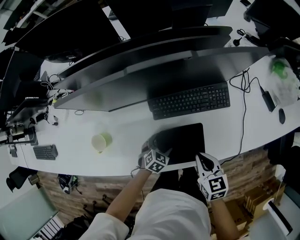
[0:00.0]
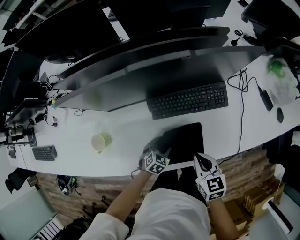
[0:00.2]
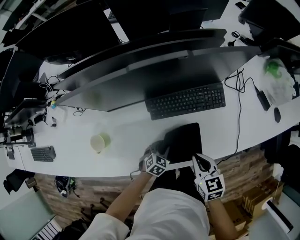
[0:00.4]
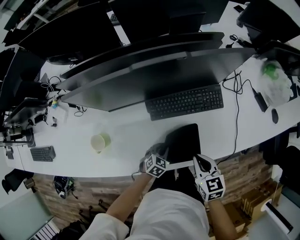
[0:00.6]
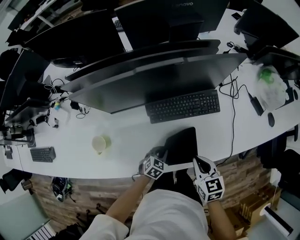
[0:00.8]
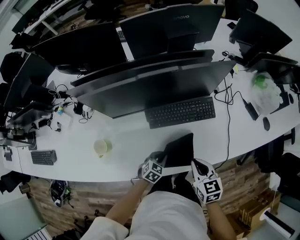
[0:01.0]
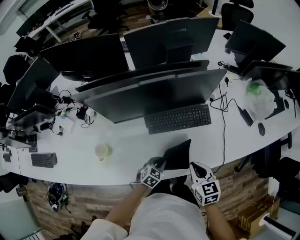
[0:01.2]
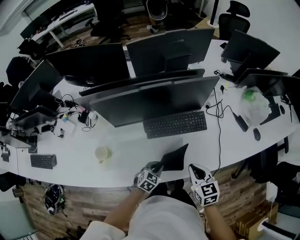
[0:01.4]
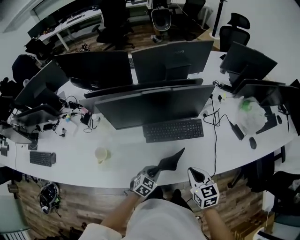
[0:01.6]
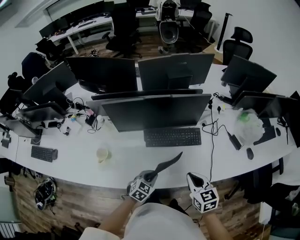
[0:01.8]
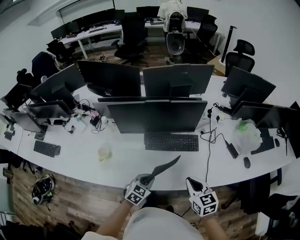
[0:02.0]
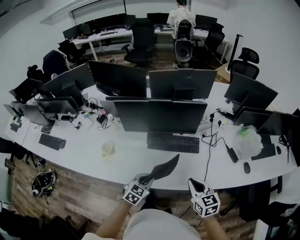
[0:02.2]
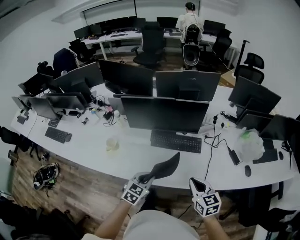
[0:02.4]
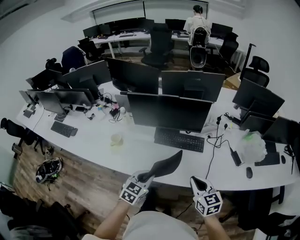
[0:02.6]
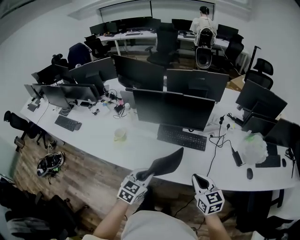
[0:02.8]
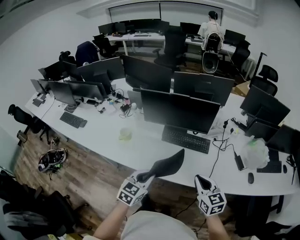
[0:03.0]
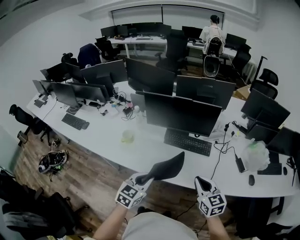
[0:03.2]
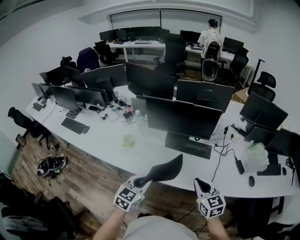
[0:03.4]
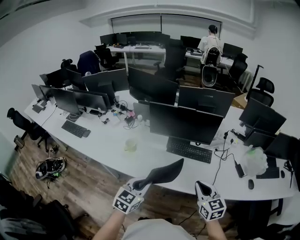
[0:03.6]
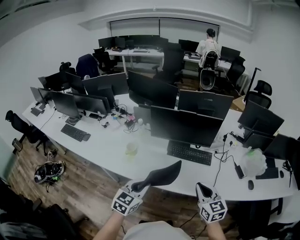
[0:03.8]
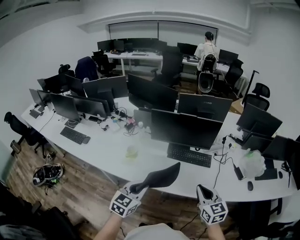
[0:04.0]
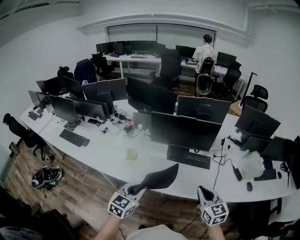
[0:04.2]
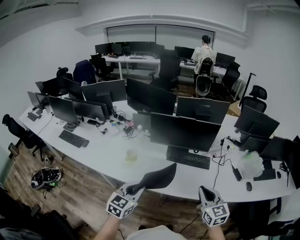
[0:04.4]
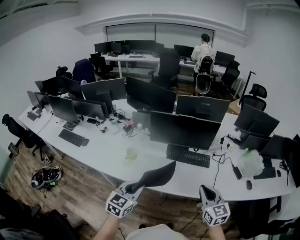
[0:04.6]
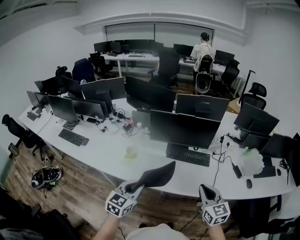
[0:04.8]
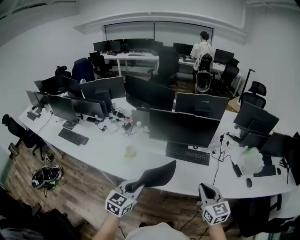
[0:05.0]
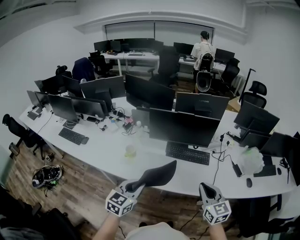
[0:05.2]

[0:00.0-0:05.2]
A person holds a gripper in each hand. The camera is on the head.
0.0 to 1.8 s: Both grippers travel together upward, roughly 20 cm. The left gripper closes.
1.8 to 3.4 s: The right gripper goes roughly 15 cm backward and upward, and changes its angle by approximately 20 degrees. The left gripper moves upward and backward, approximately 30 cm, and changes its angle by roughly 30 degrees.
3.4 to 5.2 s: The right gripper shifts approximately 5 cm upward. The left gripper shifts some 10 cm to the left.

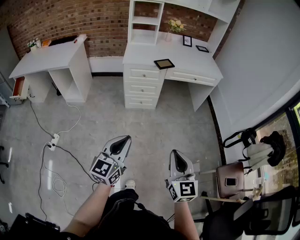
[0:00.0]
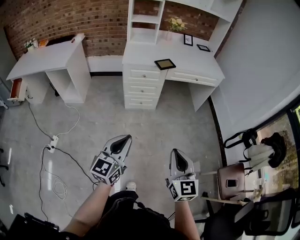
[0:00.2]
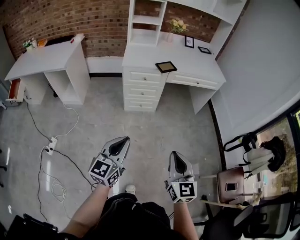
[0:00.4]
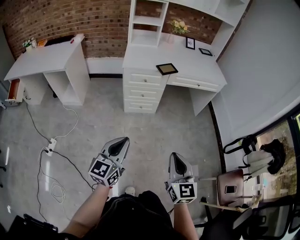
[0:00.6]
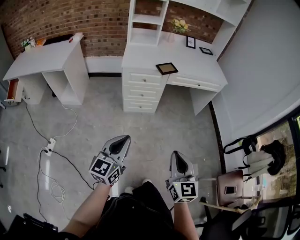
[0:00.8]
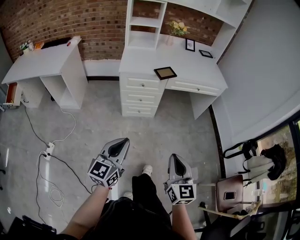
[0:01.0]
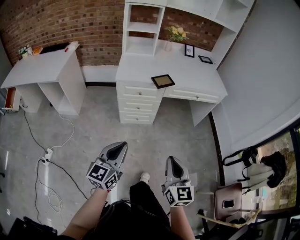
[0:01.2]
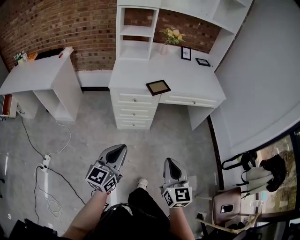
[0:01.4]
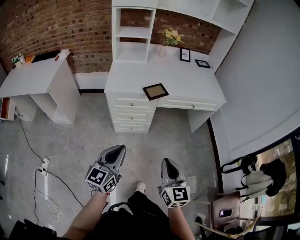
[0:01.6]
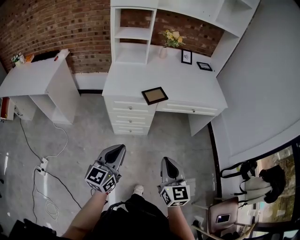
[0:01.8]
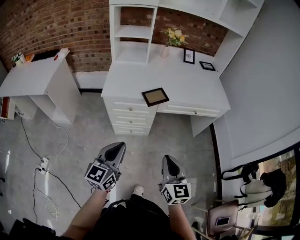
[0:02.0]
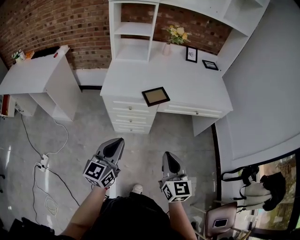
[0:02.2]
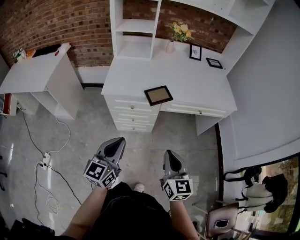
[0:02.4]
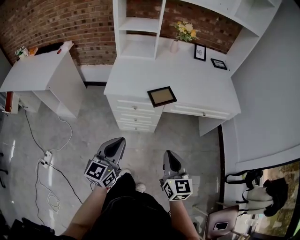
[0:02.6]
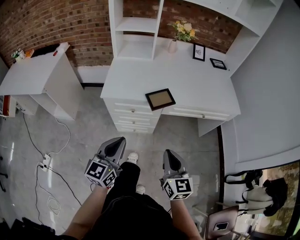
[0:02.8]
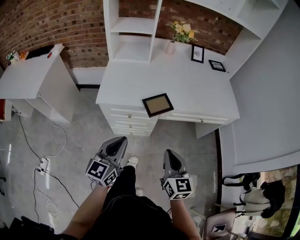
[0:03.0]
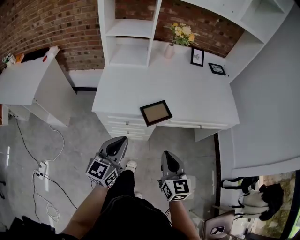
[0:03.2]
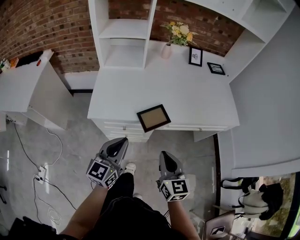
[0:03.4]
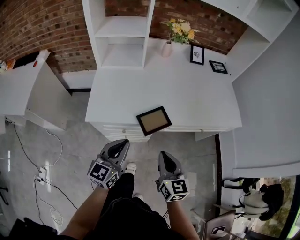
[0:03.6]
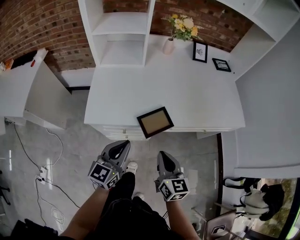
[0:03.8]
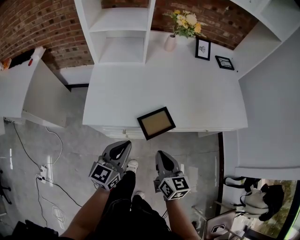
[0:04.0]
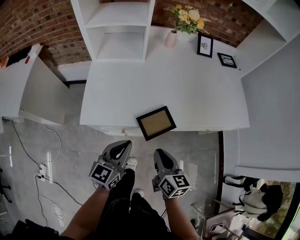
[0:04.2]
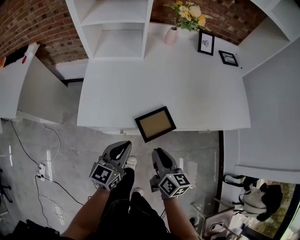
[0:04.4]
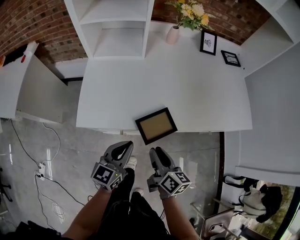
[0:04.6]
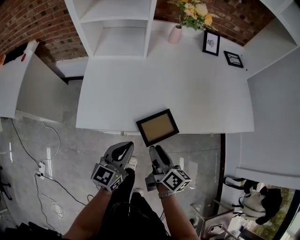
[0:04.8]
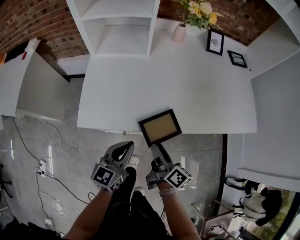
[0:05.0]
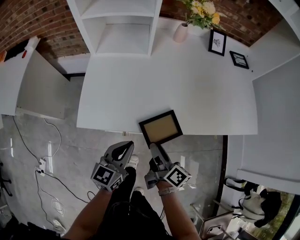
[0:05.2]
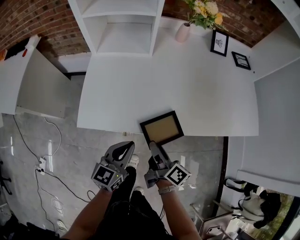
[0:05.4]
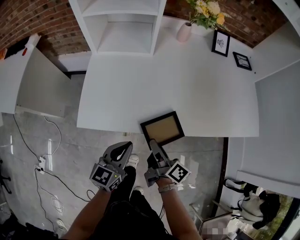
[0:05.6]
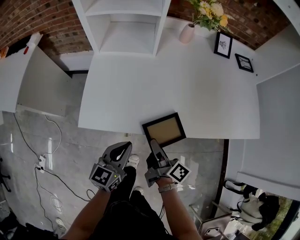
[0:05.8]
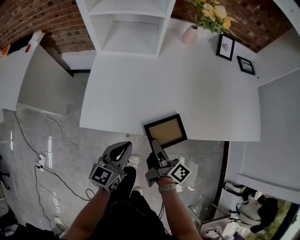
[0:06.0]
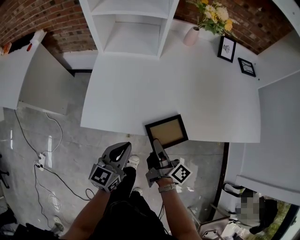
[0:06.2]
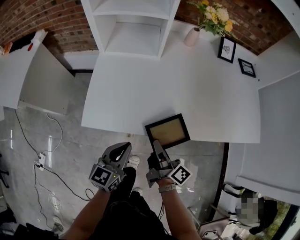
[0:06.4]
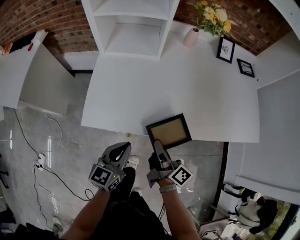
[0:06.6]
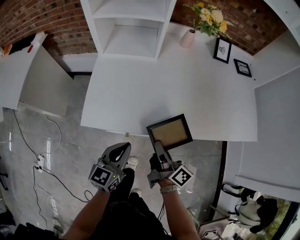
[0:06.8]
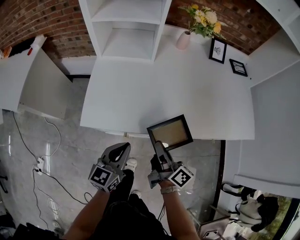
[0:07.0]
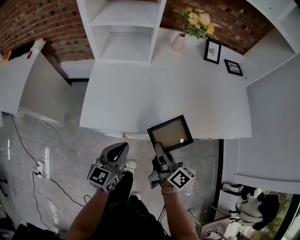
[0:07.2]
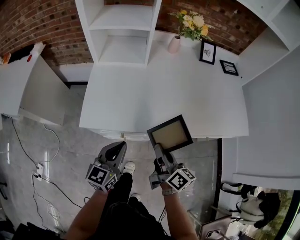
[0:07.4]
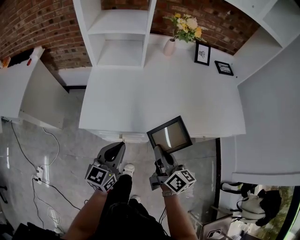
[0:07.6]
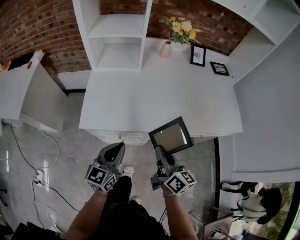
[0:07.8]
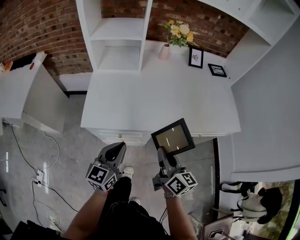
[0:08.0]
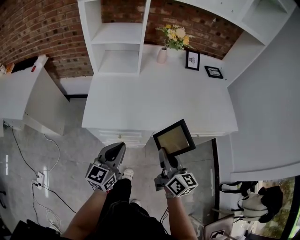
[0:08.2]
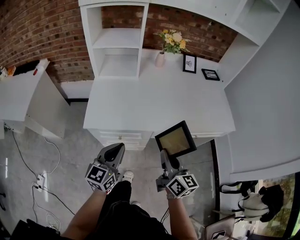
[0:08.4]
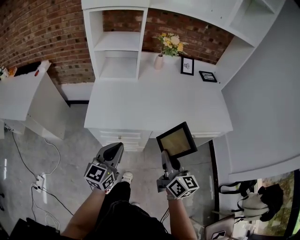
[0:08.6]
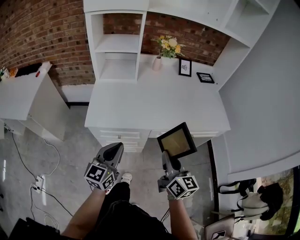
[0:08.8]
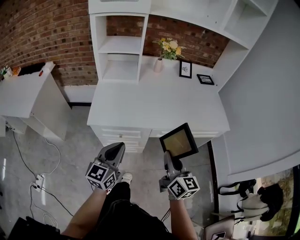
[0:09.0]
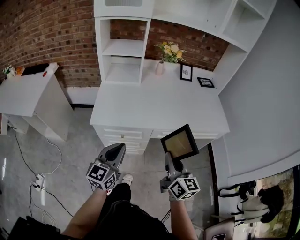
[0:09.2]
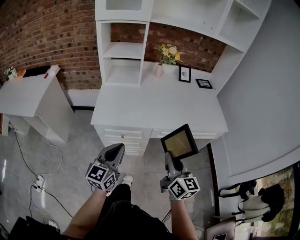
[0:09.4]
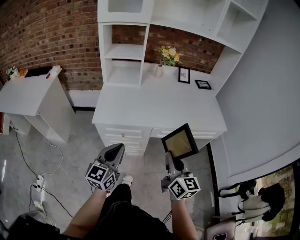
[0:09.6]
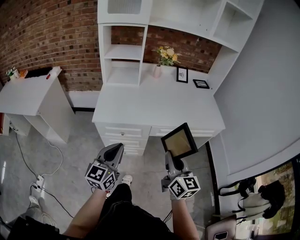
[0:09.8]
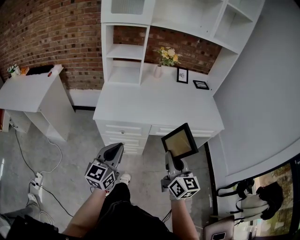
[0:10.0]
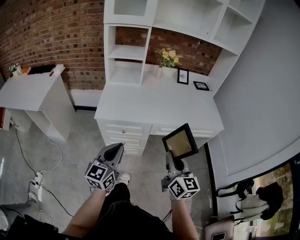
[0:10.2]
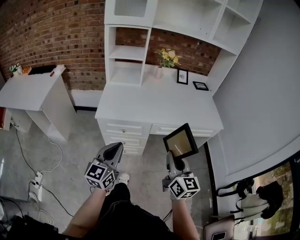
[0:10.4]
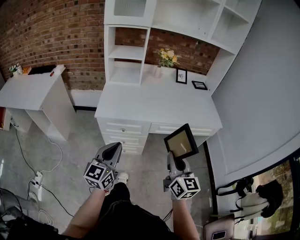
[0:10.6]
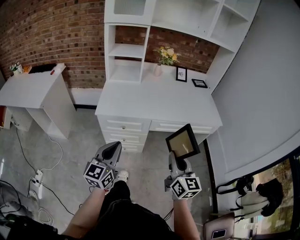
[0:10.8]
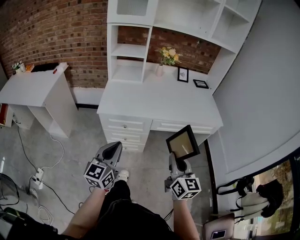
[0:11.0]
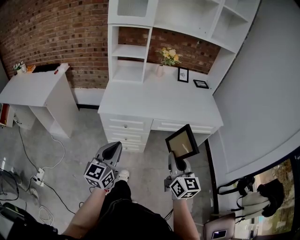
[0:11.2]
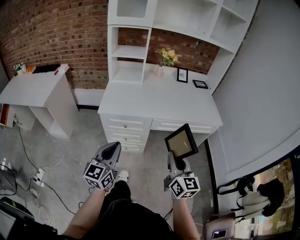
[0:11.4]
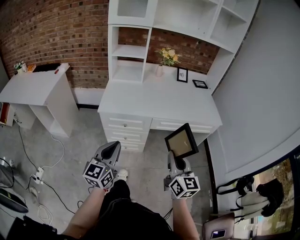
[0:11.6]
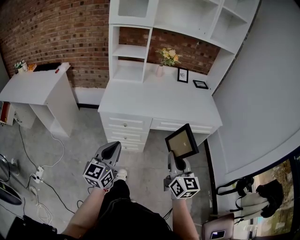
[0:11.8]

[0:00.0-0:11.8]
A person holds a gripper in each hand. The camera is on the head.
0.0 to 1.4 s: Both grippers move forward, approximately 25 cm.
1.4 to 3.0 s: Both grippers move forward, about 25 cm.
3.0 to 4.4 s: Both grippers travel together forward and downward, some 20 cm. The right gripper turns by approximately 30 degrees.
4.4 to 6.0 s: The right gripper shifts roughly 5 cm forward, swivels about 40 degrees, and opens and closes again.
6.0 to 7.4 s: The right gripper heads upward, covering approximately 5 cm, and swivels about 20 degrees.
7.4 to 8.8 s: The left gripper is displaced upward and backward by some 10 cm; the right gripper goes some 15 cm backward, upward and to the right, and changes its angle by some 30 degrees.
8.8 to 10.4 s: Both grippers move backward, approximately 10 cm.
10.4 to 11.8 s: The left gripper travels backward by approximately 5 cm.

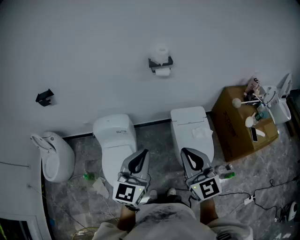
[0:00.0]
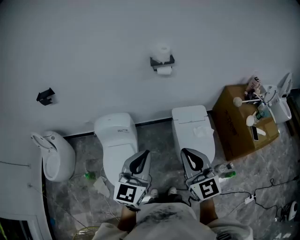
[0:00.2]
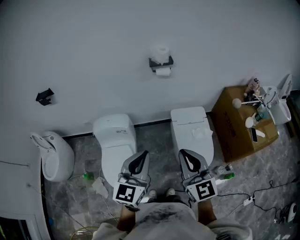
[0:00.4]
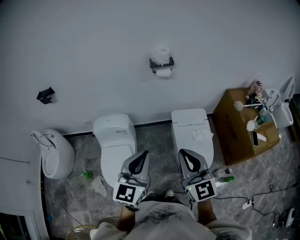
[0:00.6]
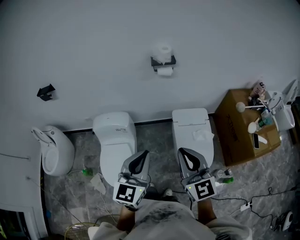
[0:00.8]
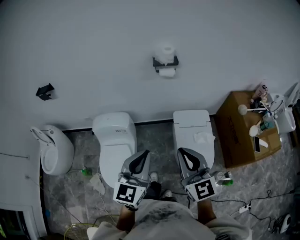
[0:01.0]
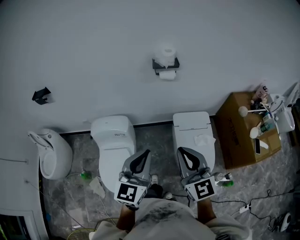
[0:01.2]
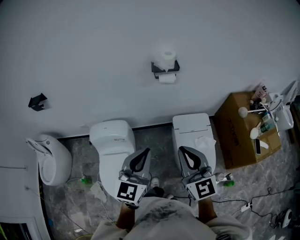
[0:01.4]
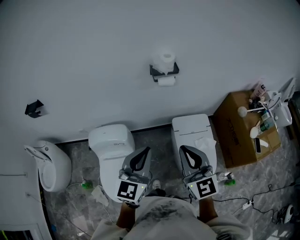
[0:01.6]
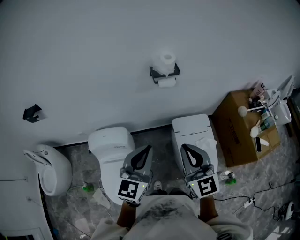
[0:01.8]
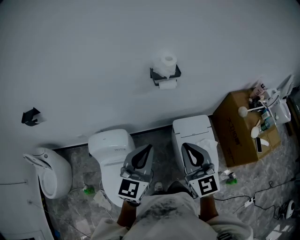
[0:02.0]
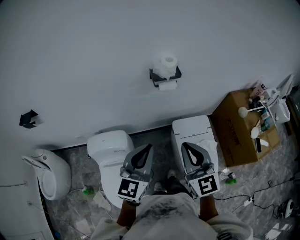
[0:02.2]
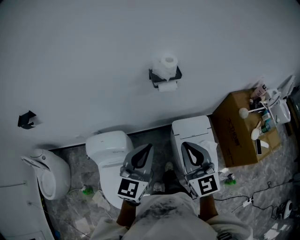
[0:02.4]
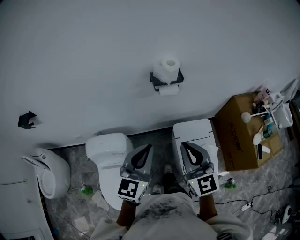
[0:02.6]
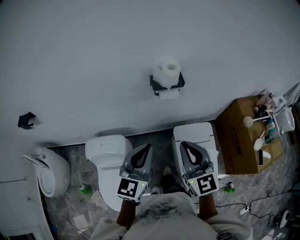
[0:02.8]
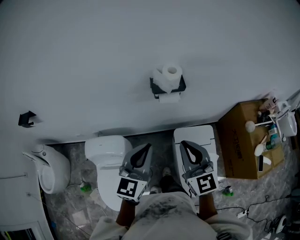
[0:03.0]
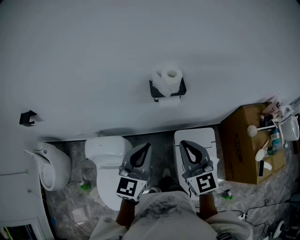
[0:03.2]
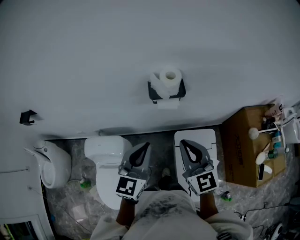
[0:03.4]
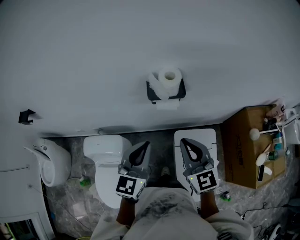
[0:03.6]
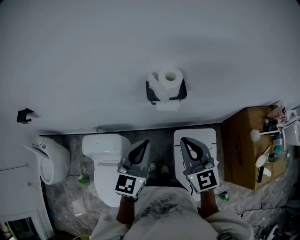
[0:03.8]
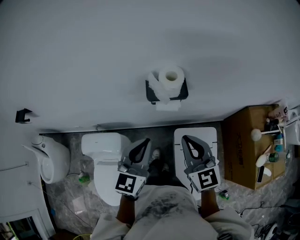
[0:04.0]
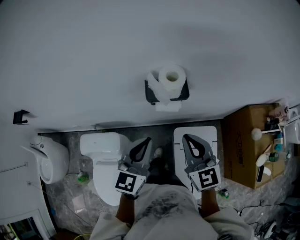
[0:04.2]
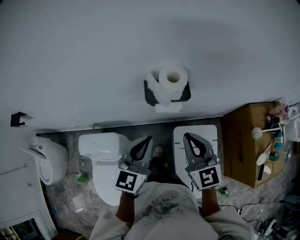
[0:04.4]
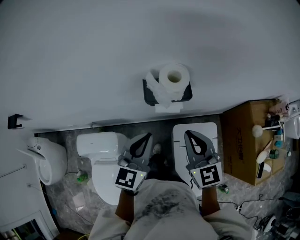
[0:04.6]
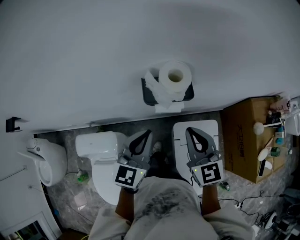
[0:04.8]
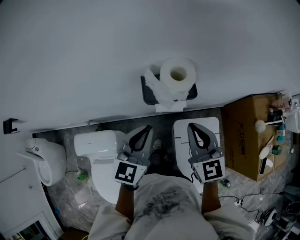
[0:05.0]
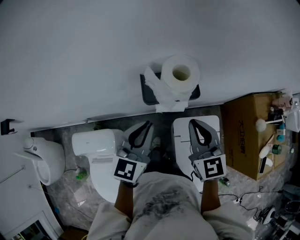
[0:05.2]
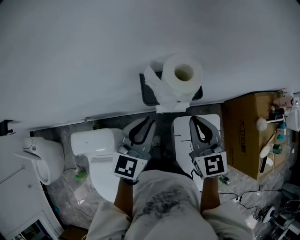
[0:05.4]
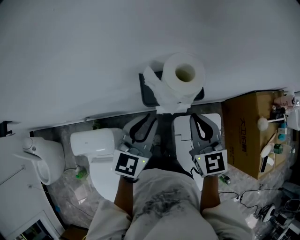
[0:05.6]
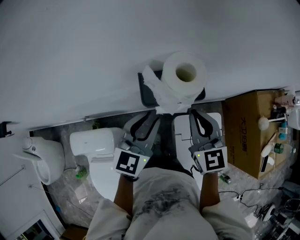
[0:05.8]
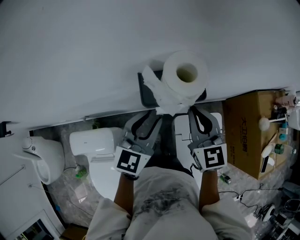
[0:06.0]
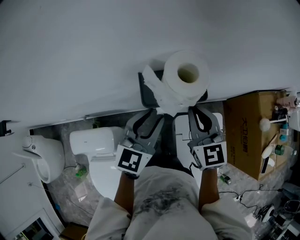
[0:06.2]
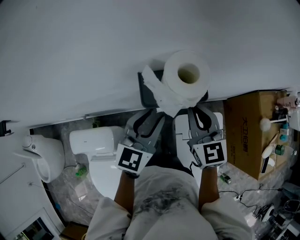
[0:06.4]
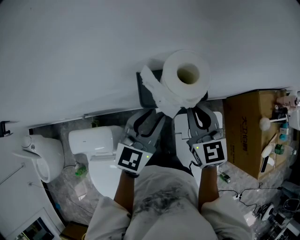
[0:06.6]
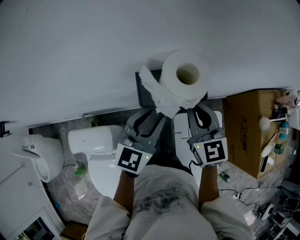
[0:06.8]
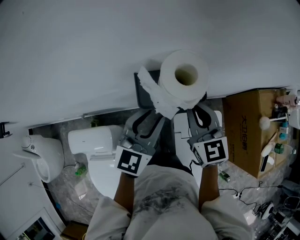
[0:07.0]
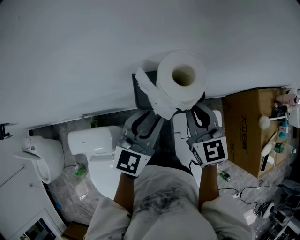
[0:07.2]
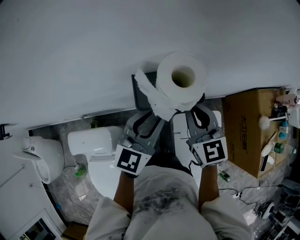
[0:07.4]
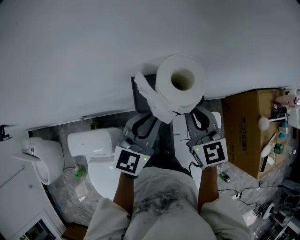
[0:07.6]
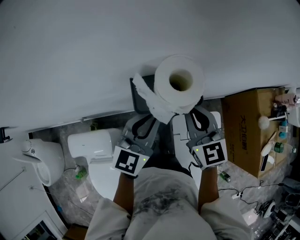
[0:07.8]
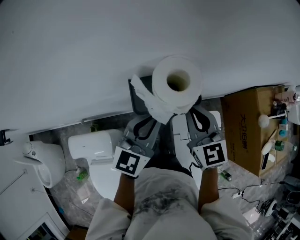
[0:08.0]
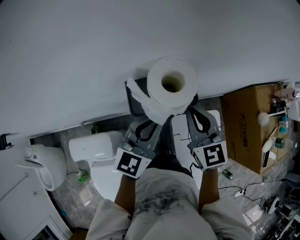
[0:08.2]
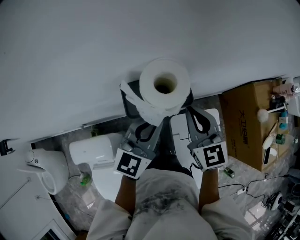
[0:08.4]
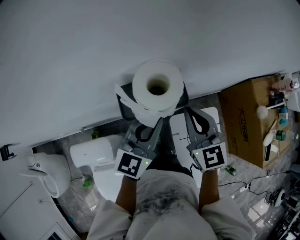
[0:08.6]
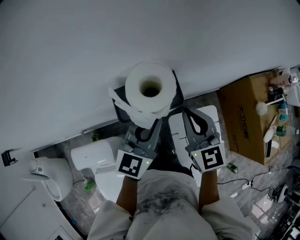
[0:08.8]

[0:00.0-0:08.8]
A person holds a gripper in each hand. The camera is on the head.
0.0 to 1.4 s: The two grippers go some 15 cm forward.
1.4 to 3.0 s: The grippers both shift forward by about 25 cm.
3.0 to 4.4 s: Both grippers move forward and downward, roughly 15 cm.
4.4 to 5.8 s: Both grippers travel together forward and downward, roughly 15 cm. The left gripper opens its fingers.
5.8 to 7.4 s: There are only small adjustments of the grippers.
7.4 to 8.8 s: The left gripper closes its fingers.
